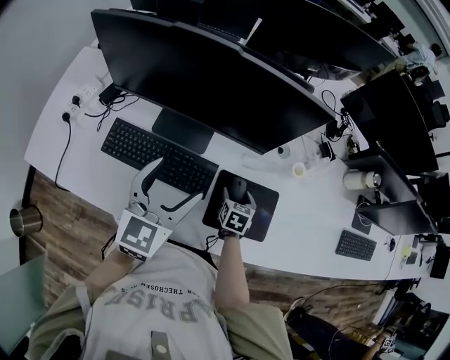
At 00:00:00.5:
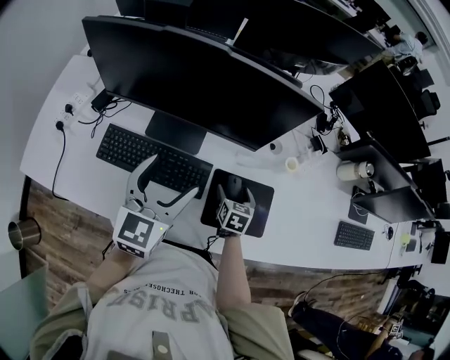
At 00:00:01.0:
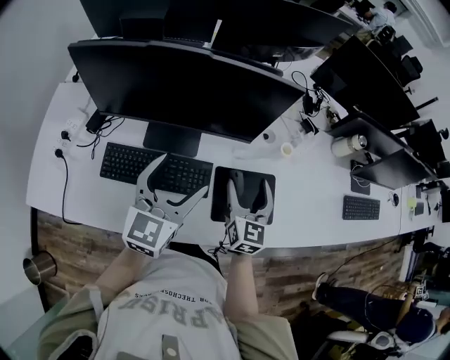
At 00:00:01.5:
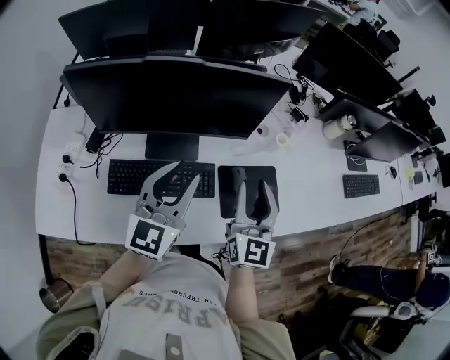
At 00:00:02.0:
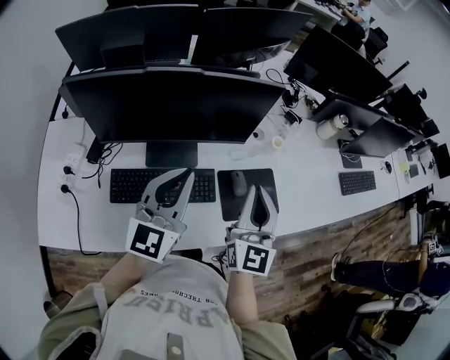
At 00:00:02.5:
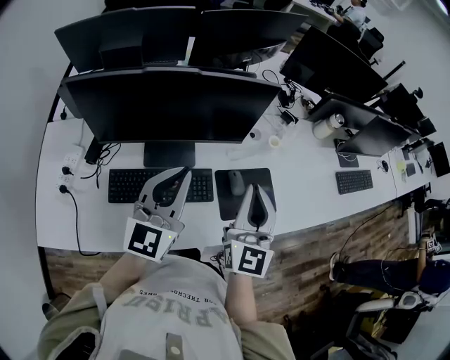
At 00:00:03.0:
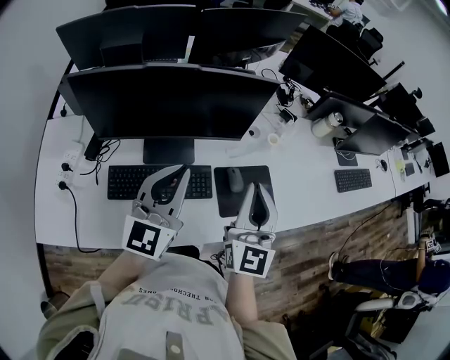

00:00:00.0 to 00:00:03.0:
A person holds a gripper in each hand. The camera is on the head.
00:00:00.0 to 00:00:01.5: The right gripper is displaced upward by some 35 cm, tips its fingers upward by roughly 50 degrees, and closes up. The left gripper heads upward, covering some 10 cm, swivels some 20 degrees, and closes.
00:00:01.5 to 00:00:03.0: The right gripper is displaced upward by some 5 cm, and closes its fingers.

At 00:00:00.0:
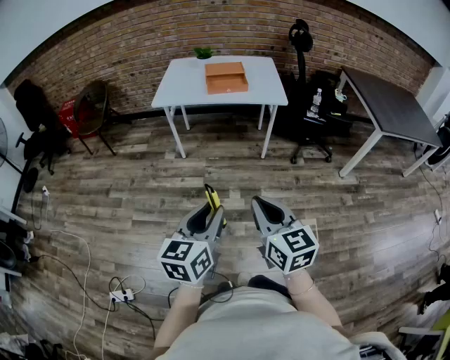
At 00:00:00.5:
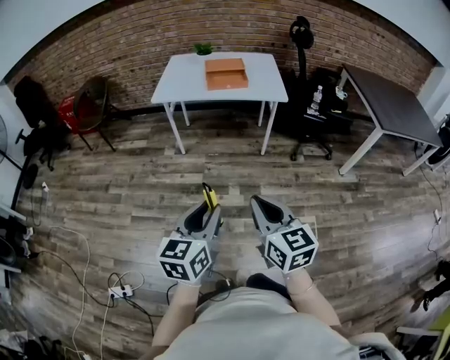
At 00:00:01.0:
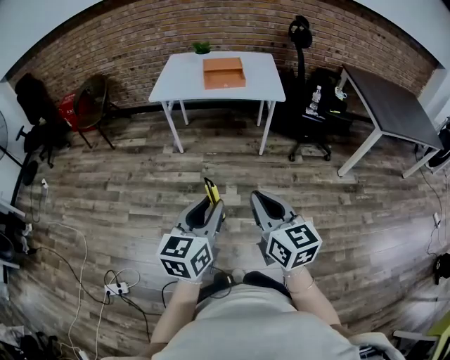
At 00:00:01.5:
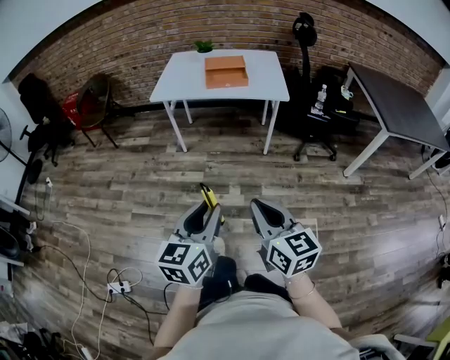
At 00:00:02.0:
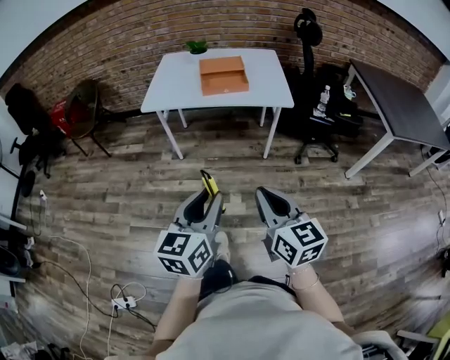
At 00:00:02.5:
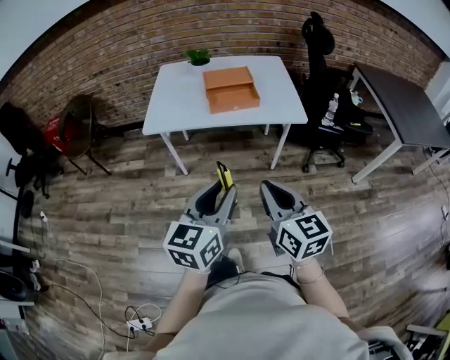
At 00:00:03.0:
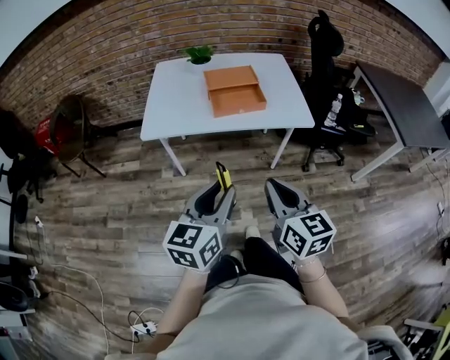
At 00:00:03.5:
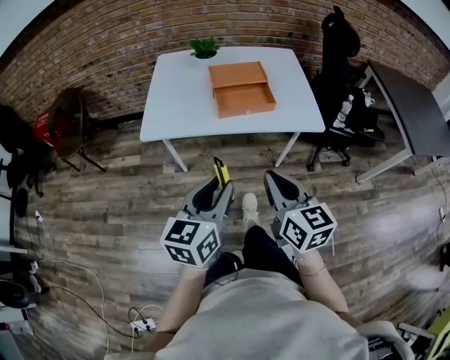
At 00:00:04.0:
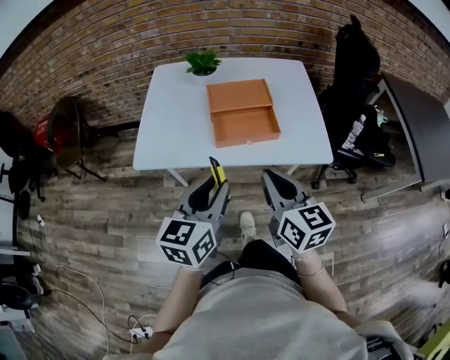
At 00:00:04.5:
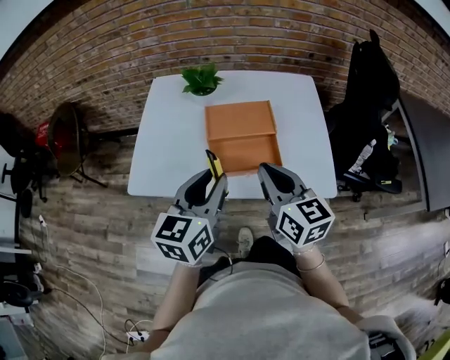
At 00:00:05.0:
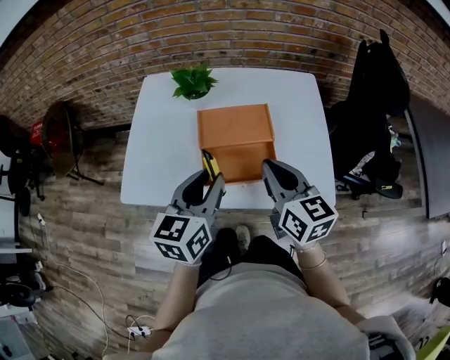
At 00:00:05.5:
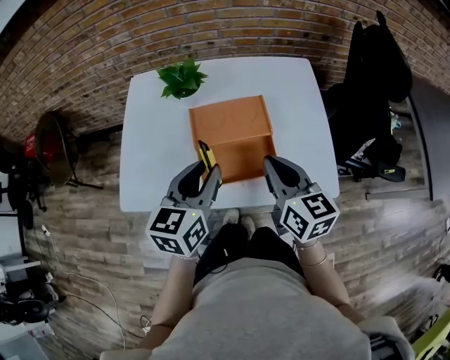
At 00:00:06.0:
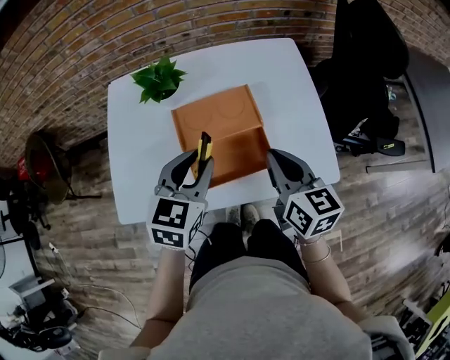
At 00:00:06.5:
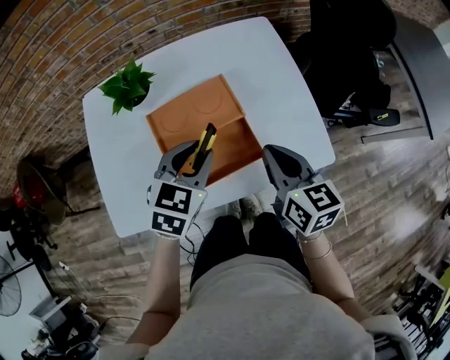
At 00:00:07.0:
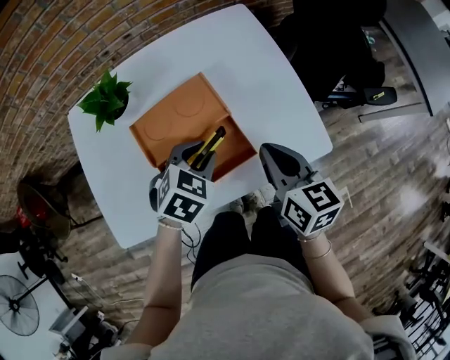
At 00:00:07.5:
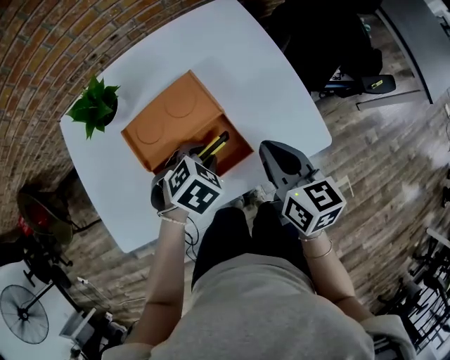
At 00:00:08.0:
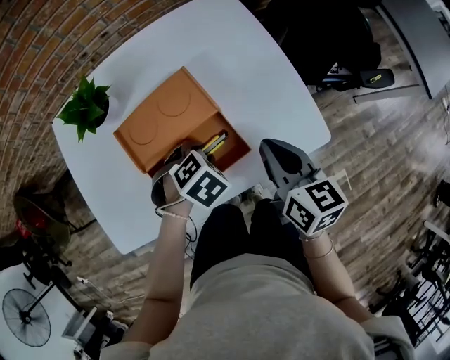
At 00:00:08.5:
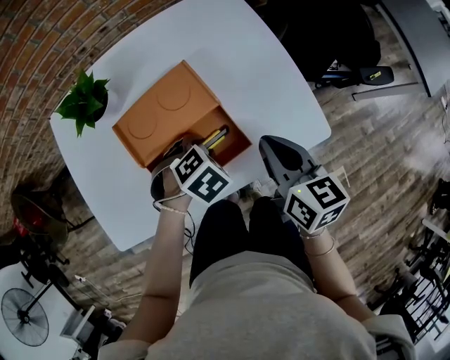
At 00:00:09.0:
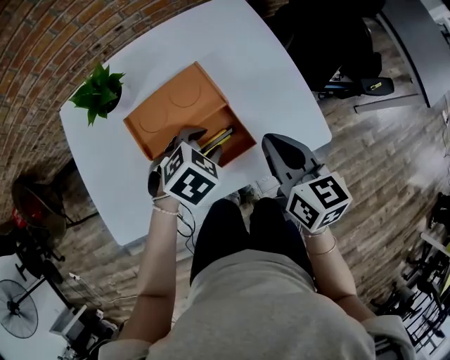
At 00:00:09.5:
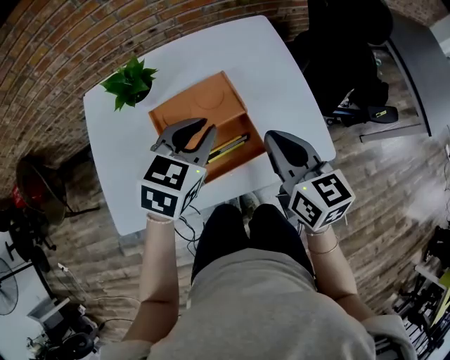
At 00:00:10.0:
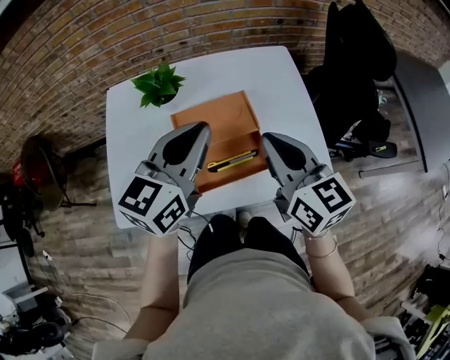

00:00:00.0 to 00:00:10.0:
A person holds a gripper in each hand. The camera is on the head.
00:00:00.0 to 00:00:02.0: Both grippers move forward, some 15 cm.
00:00:02.0 to 00:00:04.0: The two grippers travel together, forward, roughly 40 cm.
00:00:04.0 to 00:00:06.0: Both grippers travel together forward, roughly 25 cm. The left gripper turns by roughly 30 degrees.
00:00:06.0 to 00:00:08.0: The left gripper shifts about 20 cm downward, and angles its fingers downward, by about 50 degrees. The right gripper ends up about 10 cm from where it was.
00:00:08.0 to 00:00:10.0: The left gripper goes about 30 cm upward, tips its fingers upward by roughly 70 degrees, and closes up, while the right gripper is displaced upward by approximately 15 cm, and changes its angle by roughly 30 degrees.

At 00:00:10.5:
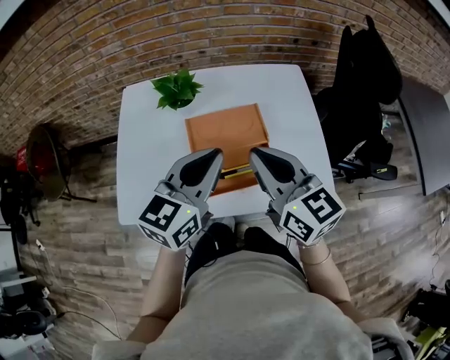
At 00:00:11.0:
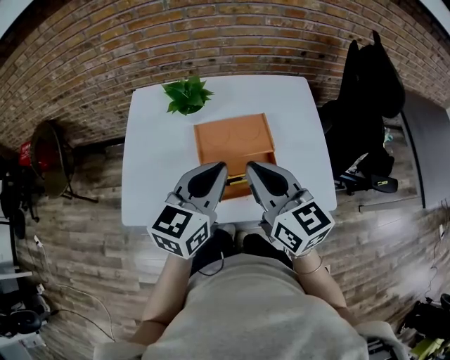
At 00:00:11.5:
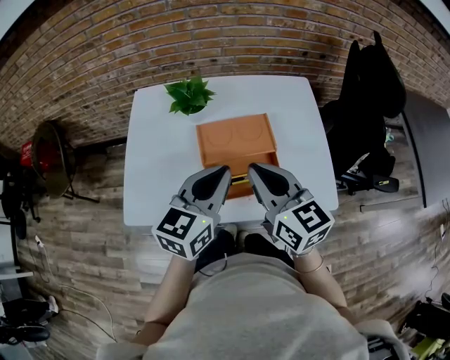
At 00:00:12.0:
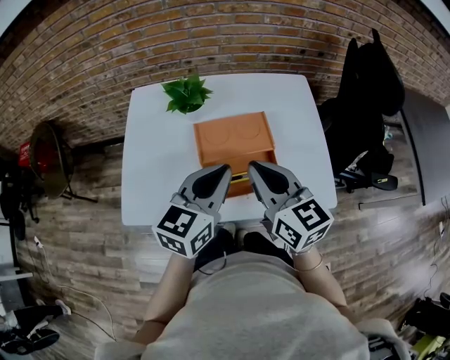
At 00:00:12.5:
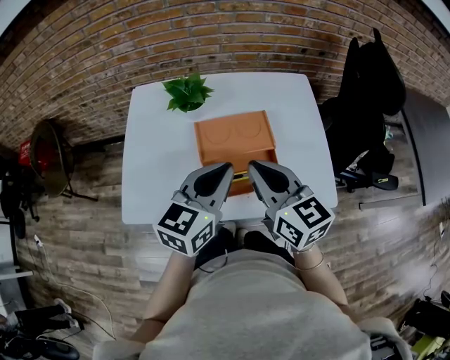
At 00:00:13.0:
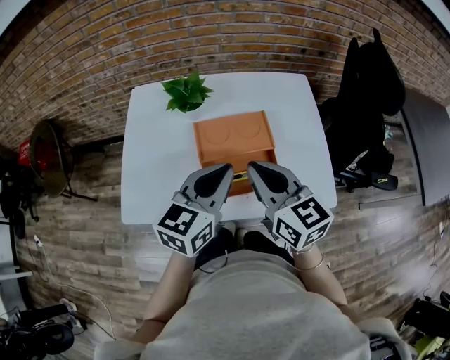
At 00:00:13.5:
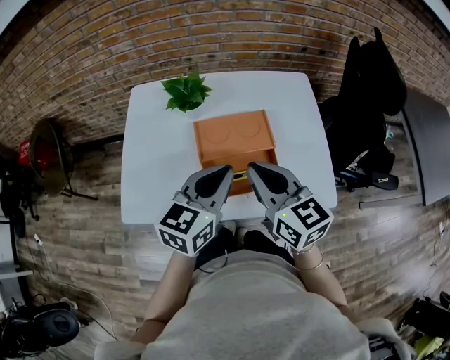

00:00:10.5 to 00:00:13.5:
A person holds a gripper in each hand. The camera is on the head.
00:00:10.5 to 00:00:12.0: The grippers stay close to where they were, moving slightly.
00:00:12.0 to 00:00:13.5: Both grippers stay about where they are.

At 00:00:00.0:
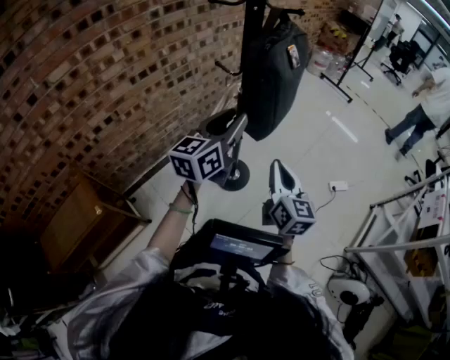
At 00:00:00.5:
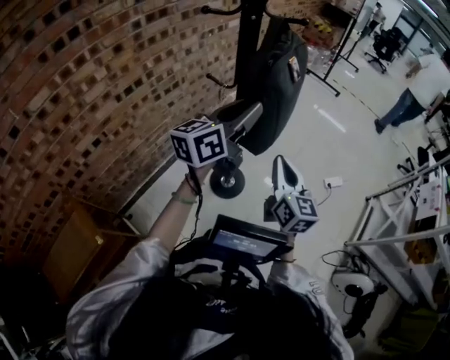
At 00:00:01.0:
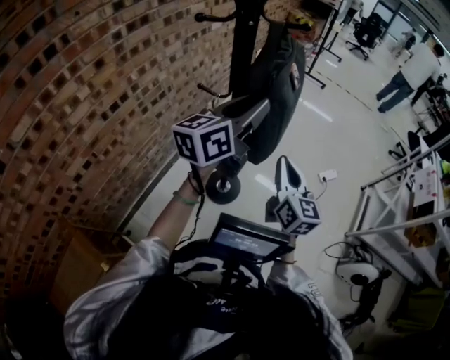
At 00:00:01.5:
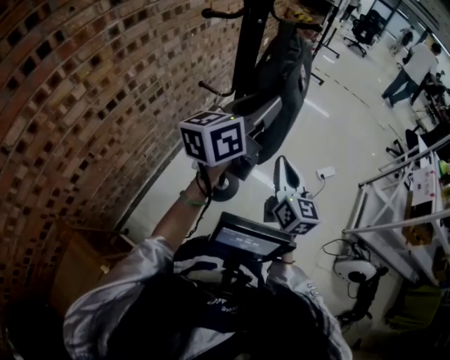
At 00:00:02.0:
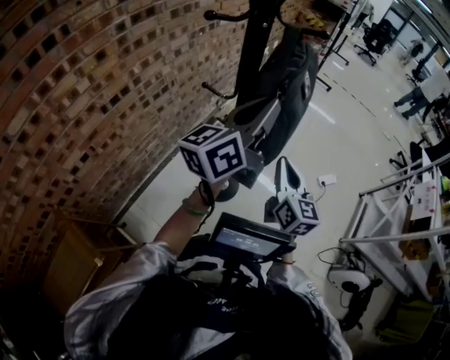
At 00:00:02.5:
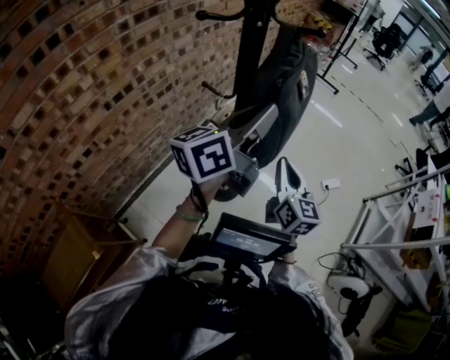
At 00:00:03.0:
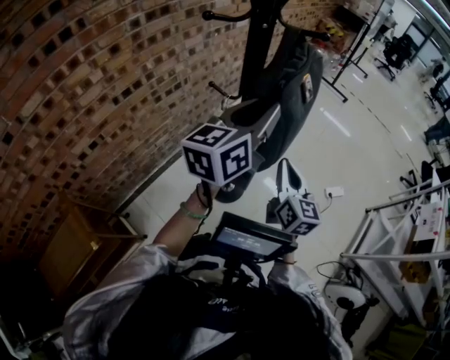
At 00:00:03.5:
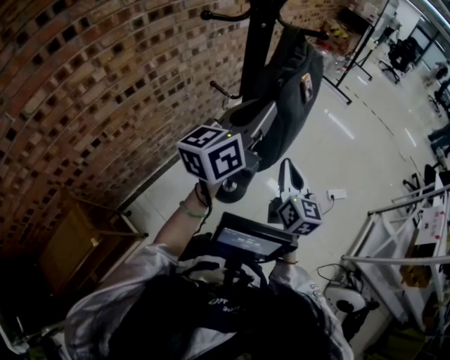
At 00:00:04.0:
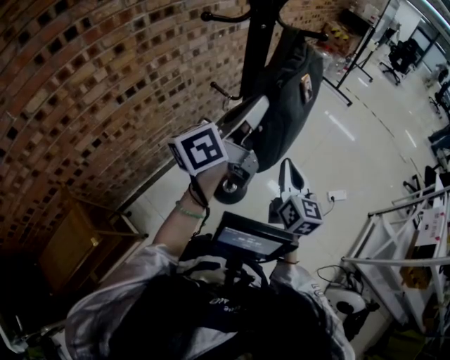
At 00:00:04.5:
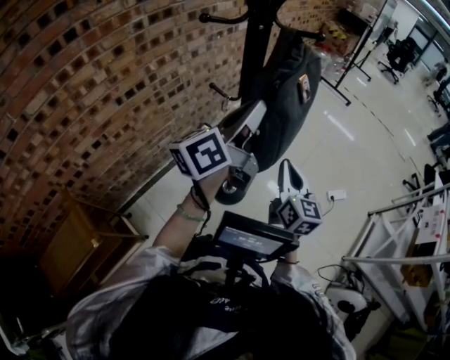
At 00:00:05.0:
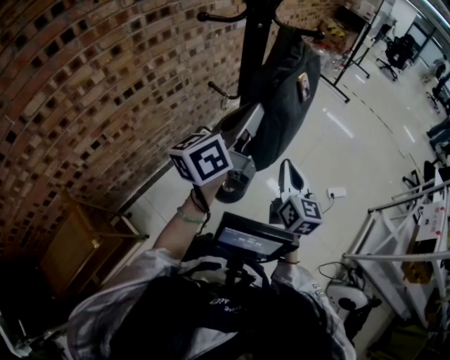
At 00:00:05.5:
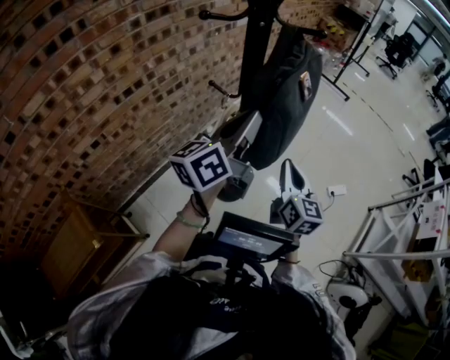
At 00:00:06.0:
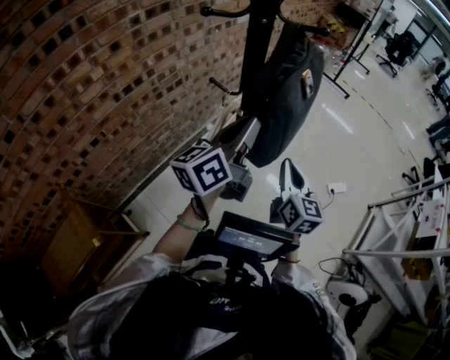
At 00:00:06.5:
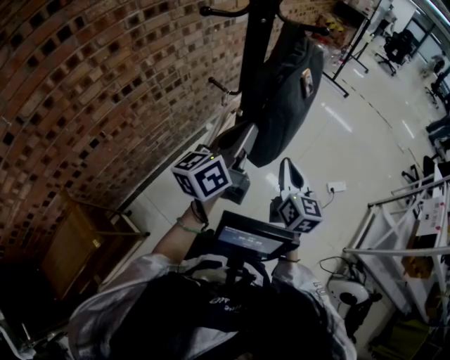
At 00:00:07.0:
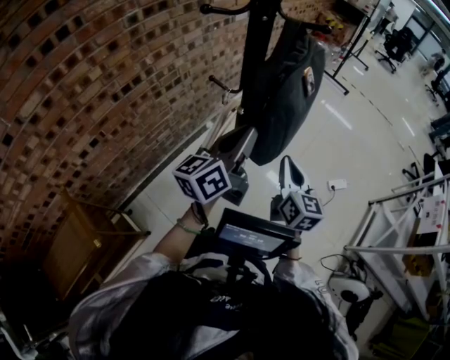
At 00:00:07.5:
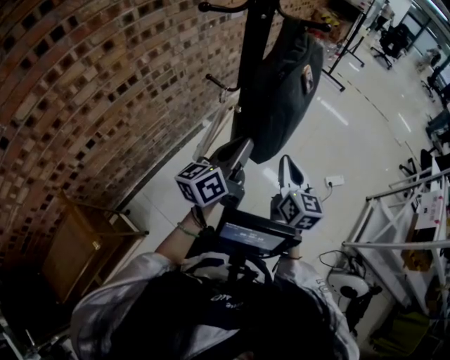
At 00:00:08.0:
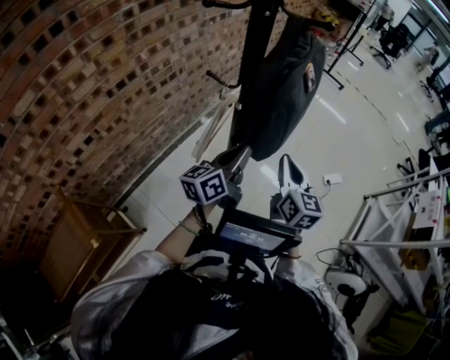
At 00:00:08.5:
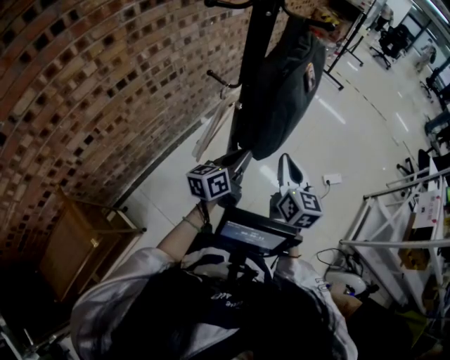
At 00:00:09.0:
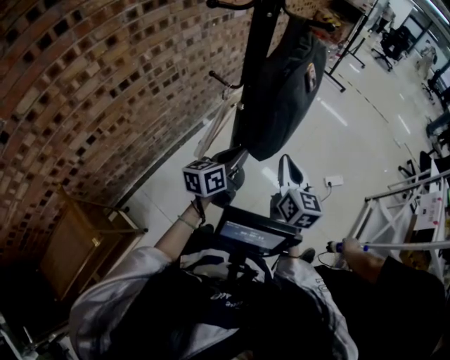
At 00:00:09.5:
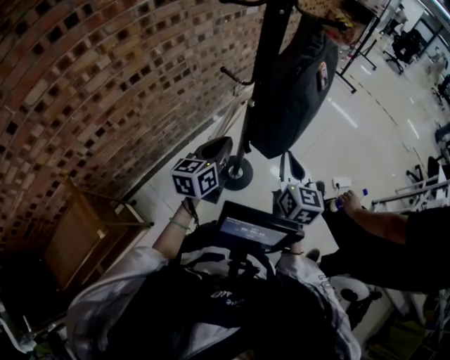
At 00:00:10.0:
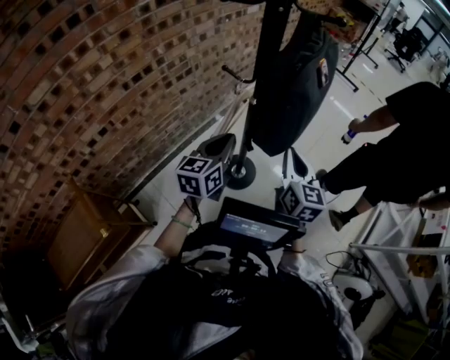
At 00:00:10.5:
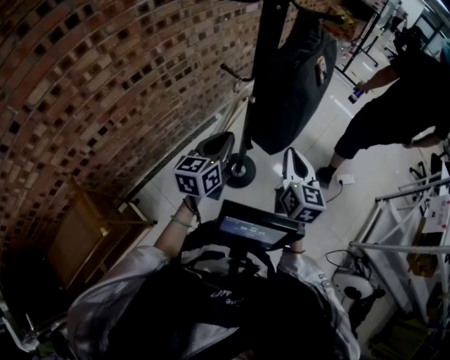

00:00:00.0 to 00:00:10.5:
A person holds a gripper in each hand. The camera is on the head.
00:00:00.0 to 00:00:02.0: The left gripper is displaced forward and upward by roughly 15 cm, rotates approximately 30 degrees, and closes up. The right gripper heads forward and to the left, covering approximately 10 cm.
00:00:04.0 to 00:00:06.5: The left gripper heads downward, covering about 10 cm.
00:00:06.5 to 00:00:08.5: The left gripper moves downward, approximately 15 cm.
00:00:08.5 to 00:00:10.5: The left gripper moves to the left, approximately 10 cm, and swivels approximately 30 degrees.
